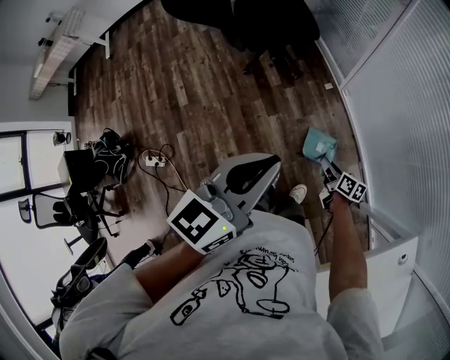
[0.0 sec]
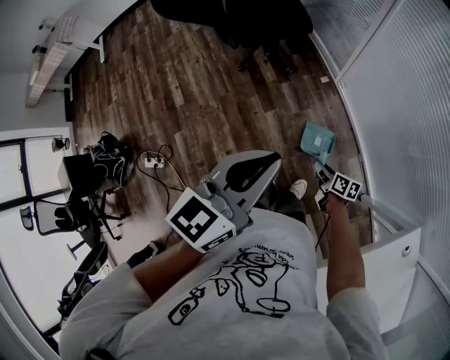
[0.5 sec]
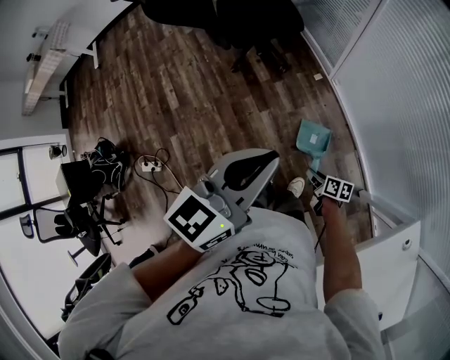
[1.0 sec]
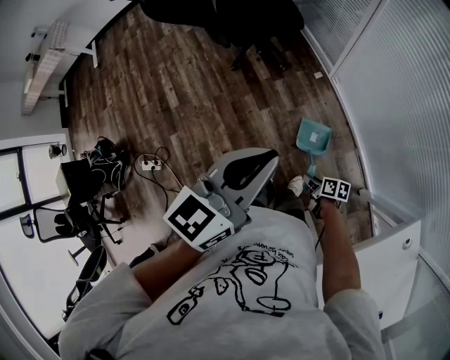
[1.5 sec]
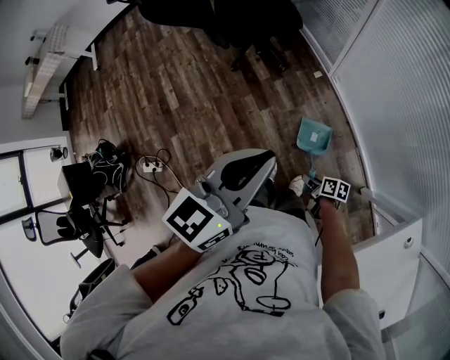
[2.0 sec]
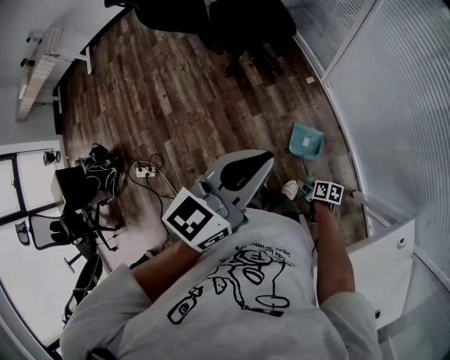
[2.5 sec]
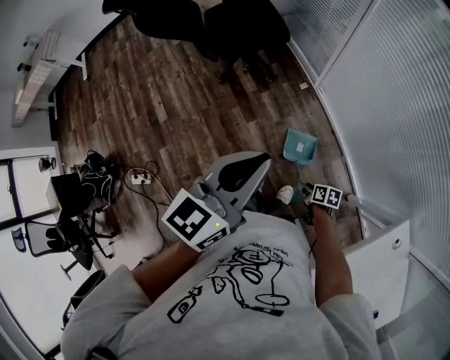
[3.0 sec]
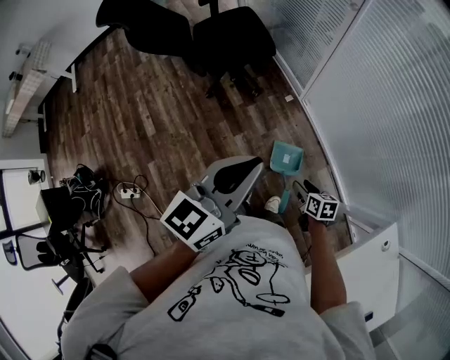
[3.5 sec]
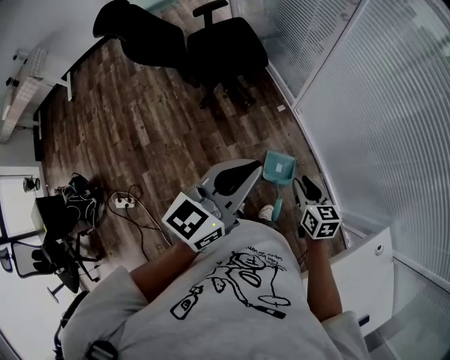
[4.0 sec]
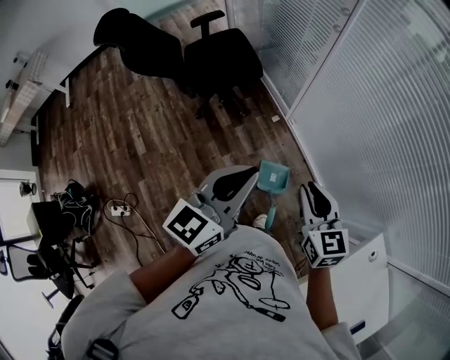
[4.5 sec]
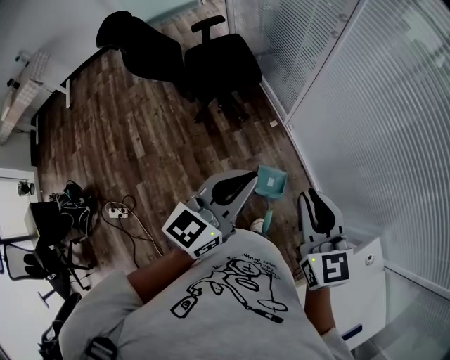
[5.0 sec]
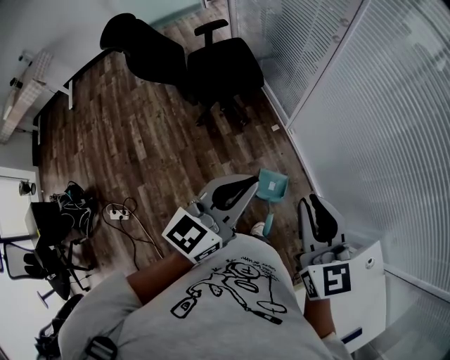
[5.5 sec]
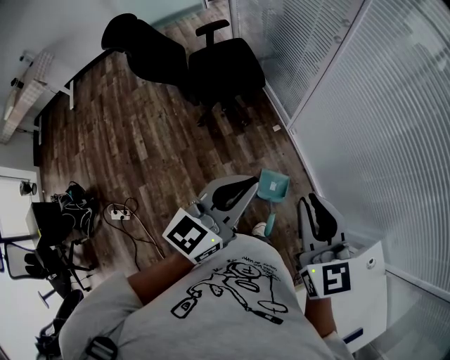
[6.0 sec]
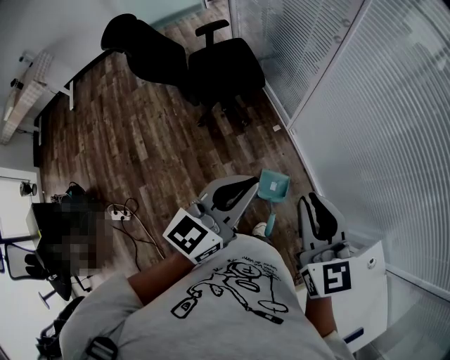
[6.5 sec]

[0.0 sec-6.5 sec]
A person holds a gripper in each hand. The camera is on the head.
0.0 sec to 2.0 sec: The right gripper moves backward and downward, approximately 15 cm, and swivels some 20 degrees.
2.0 sec to 4.5 sec: The right gripper travels upward by approximately 40 cm, rolls counterclockwise, seen from behind, by approximately 60 degrees, and opens, then closes again. The left gripper heads forward, covering some 5 cm.
4.5 sec to 6.5 sec: The right gripper moves upward, some 10 cm.

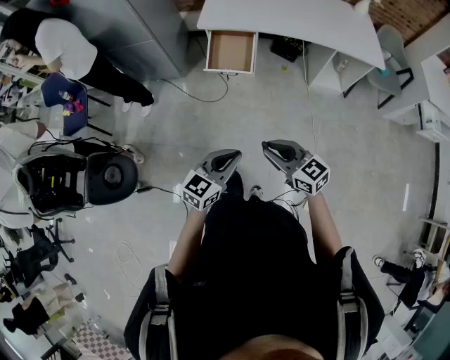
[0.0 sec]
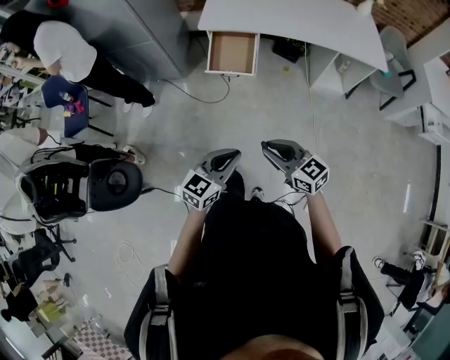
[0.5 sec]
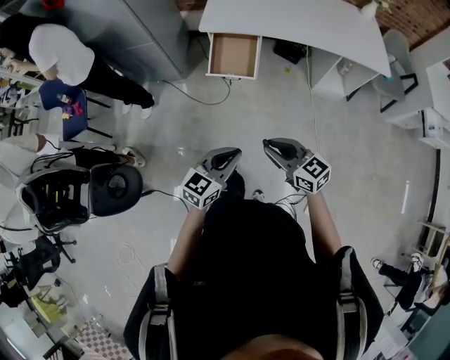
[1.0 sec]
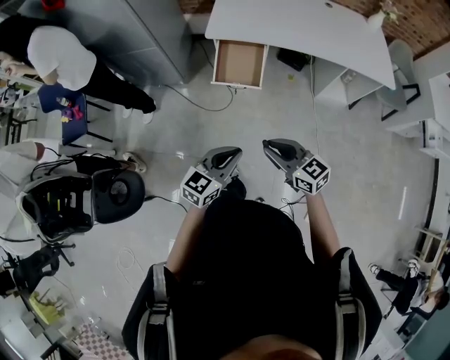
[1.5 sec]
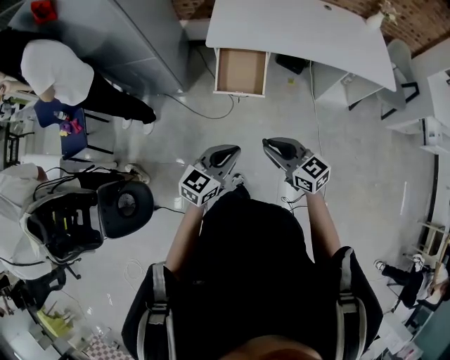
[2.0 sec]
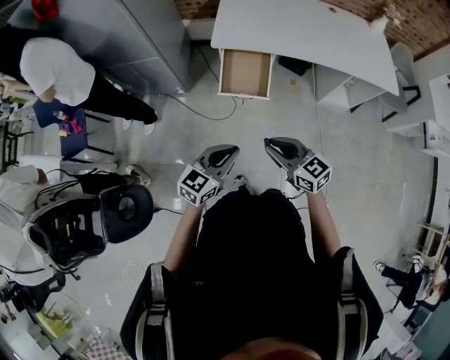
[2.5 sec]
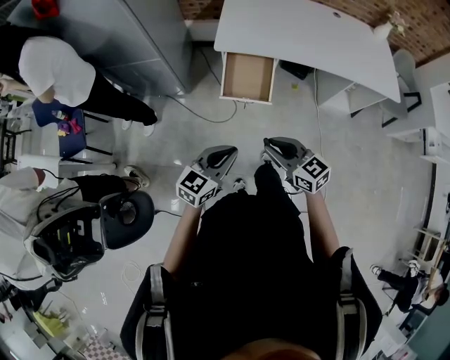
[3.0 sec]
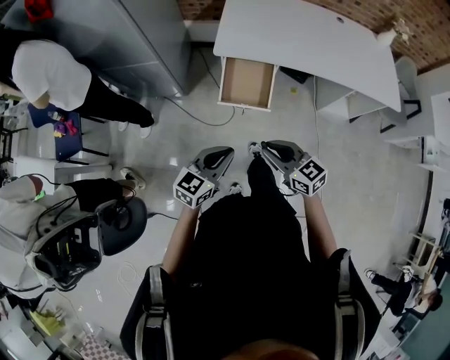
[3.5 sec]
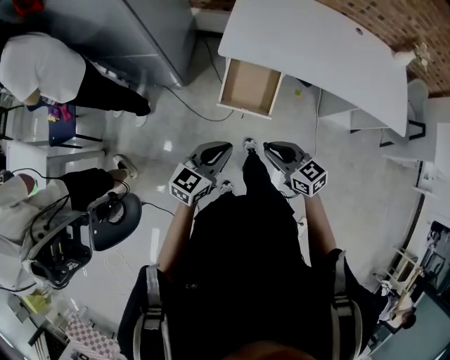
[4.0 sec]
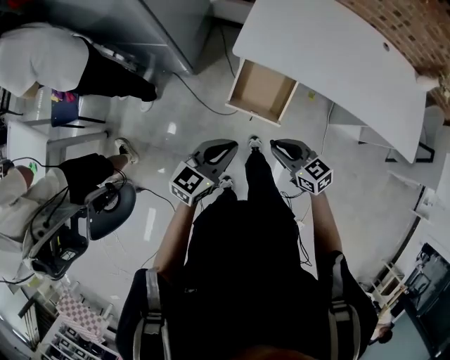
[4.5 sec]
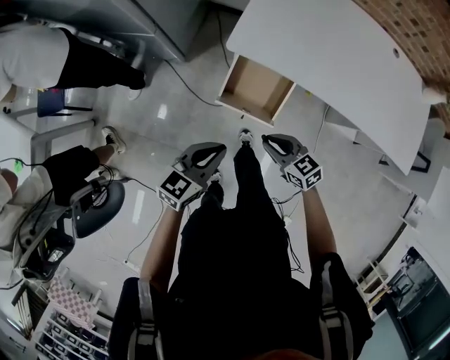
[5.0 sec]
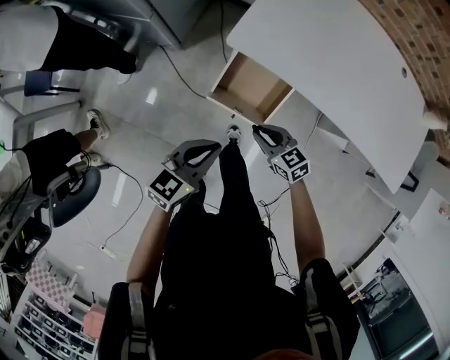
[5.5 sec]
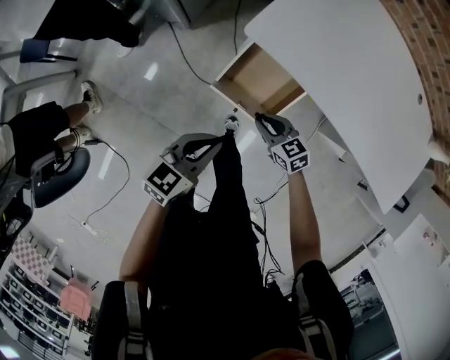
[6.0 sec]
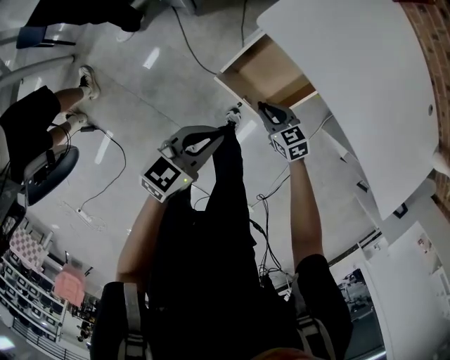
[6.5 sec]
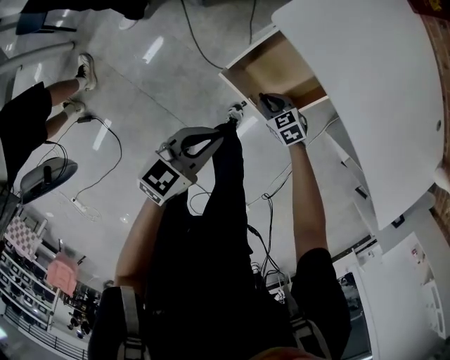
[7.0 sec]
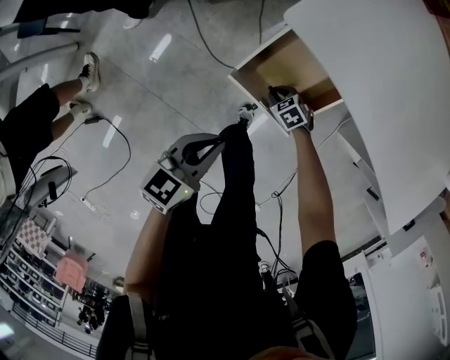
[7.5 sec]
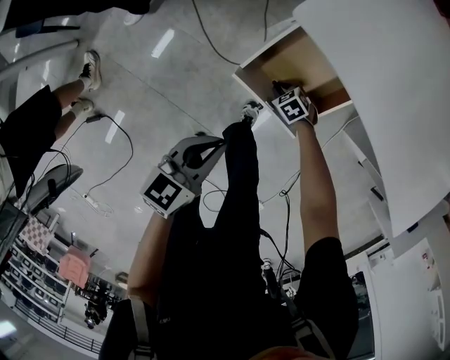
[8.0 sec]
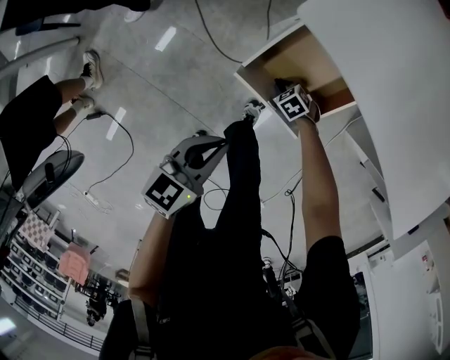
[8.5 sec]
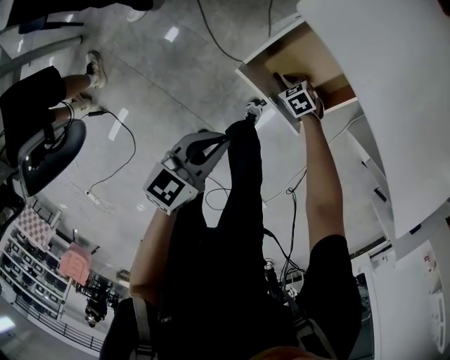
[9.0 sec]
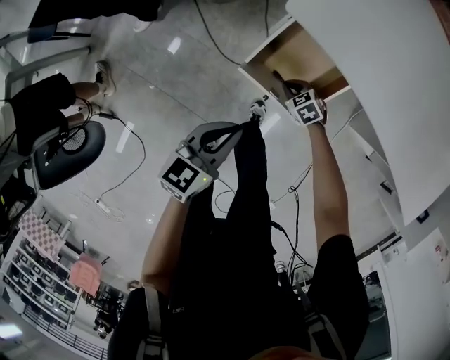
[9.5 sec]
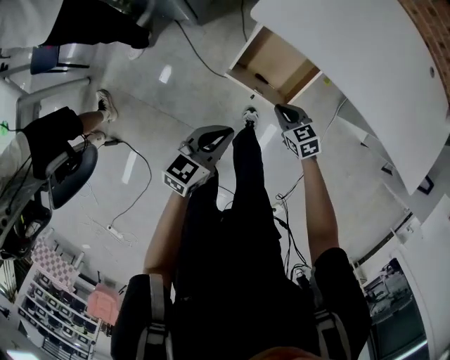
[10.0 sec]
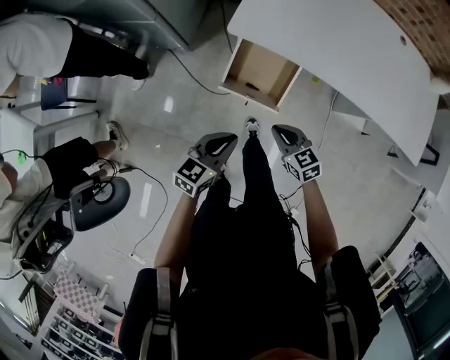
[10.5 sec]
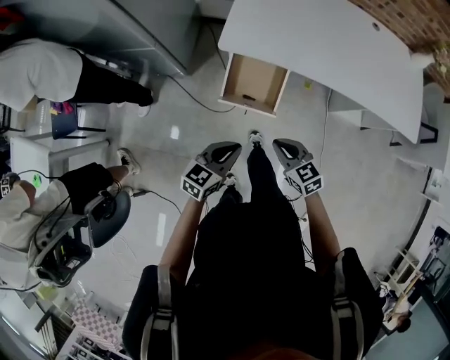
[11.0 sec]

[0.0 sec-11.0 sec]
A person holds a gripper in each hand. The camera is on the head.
0.0 sec to 2.0 sec: Both grippers travel together forward and to the left, about 20 cm.
2.0 sec to 3.5 sec: The left gripper moves forward and to the left, some 10 cm. Meanwhile the right gripper moves forward, approximately 10 cm.
3.5 sec to 5.5 sec: The right gripper goes roughly 30 cm forward and downward, and swivels roughly 30 degrees. The left gripper shifts about 20 cm forward.
5.5 sec to 7.5 sec: The left gripper heads downward, covering approximately 15 cm, while the right gripper is displaced downward by some 30 cm, and turns by approximately 30 degrees.
7.5 sec to 9.0 sec: The grippers move only a little.
9.0 sec to 11.0 sec: The right gripper moves upward, about 40 cm, and tips its fingers upward by approximately 30 degrees; the left gripper shifts some 15 cm upward, and rotates roughly 30 degrees.

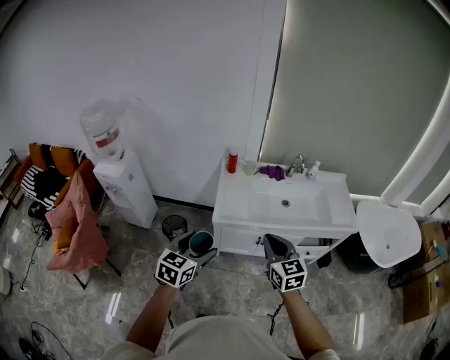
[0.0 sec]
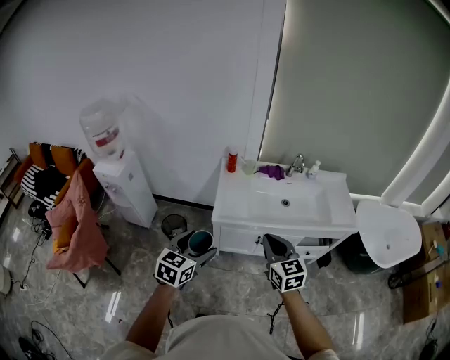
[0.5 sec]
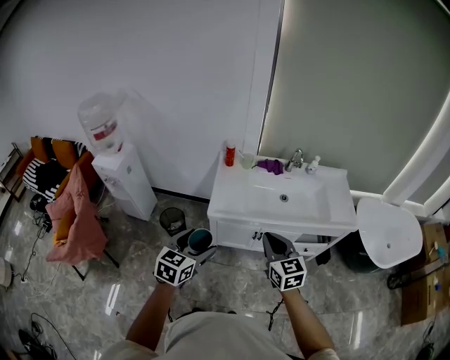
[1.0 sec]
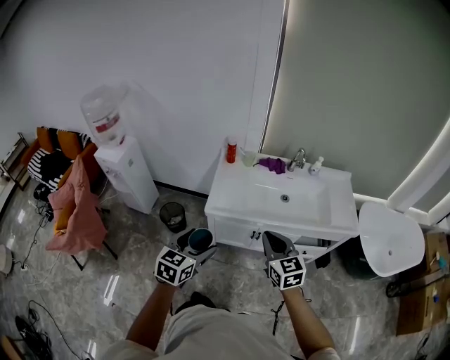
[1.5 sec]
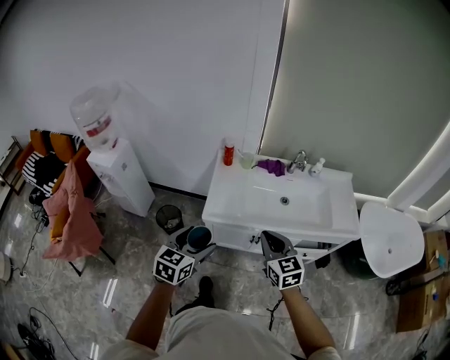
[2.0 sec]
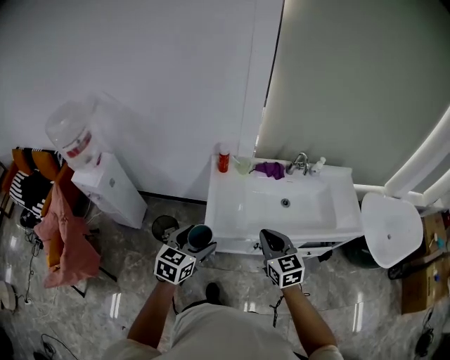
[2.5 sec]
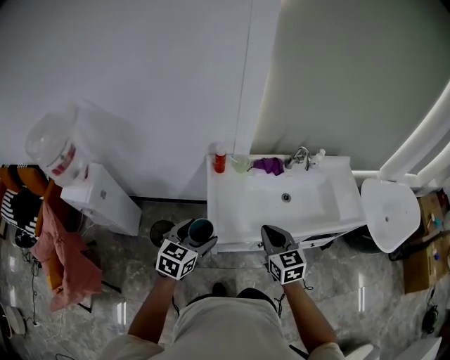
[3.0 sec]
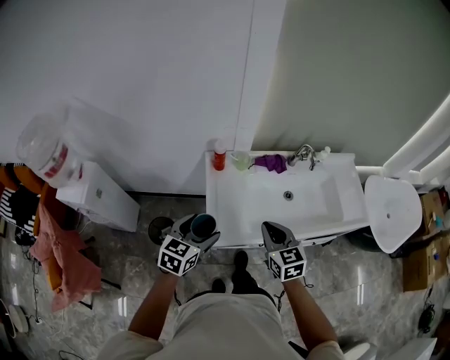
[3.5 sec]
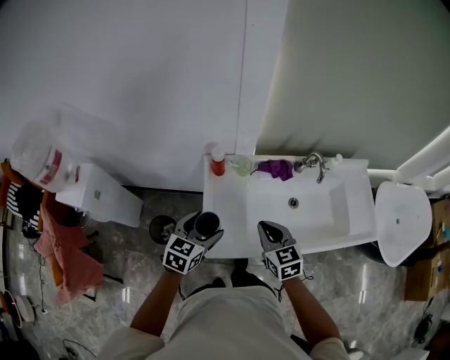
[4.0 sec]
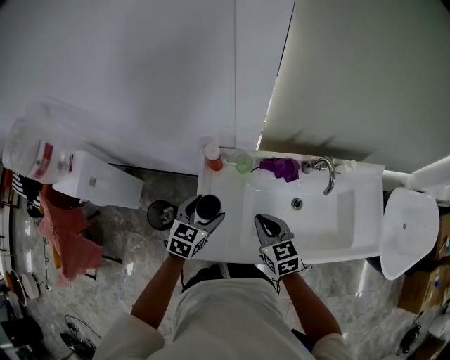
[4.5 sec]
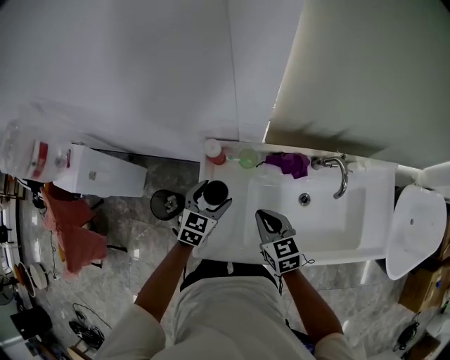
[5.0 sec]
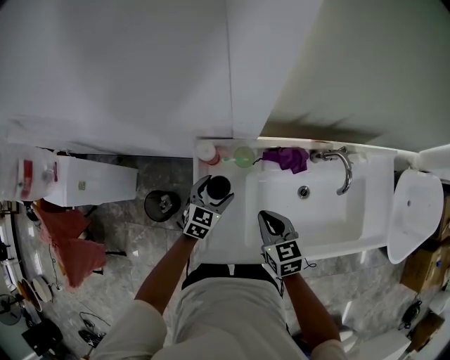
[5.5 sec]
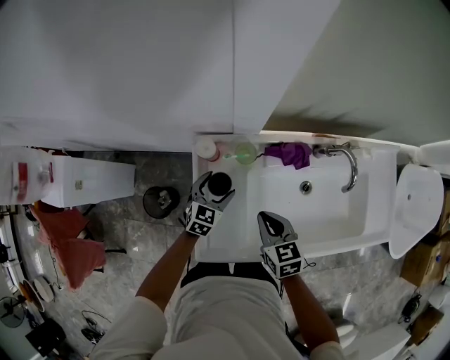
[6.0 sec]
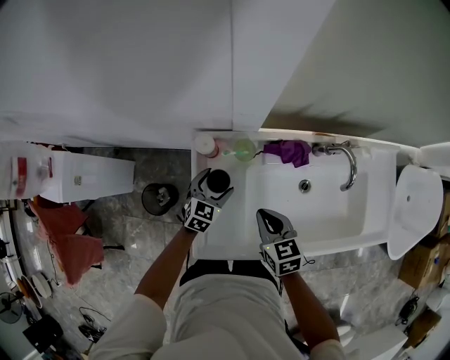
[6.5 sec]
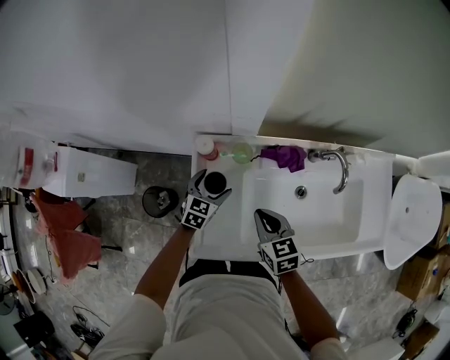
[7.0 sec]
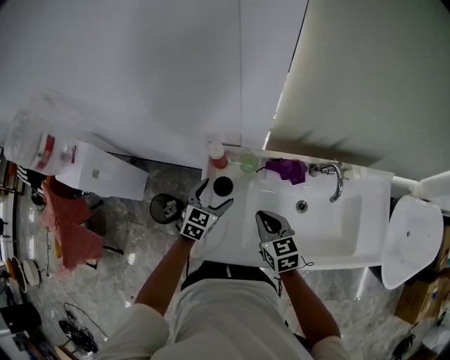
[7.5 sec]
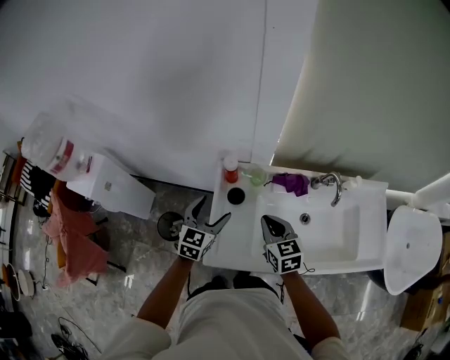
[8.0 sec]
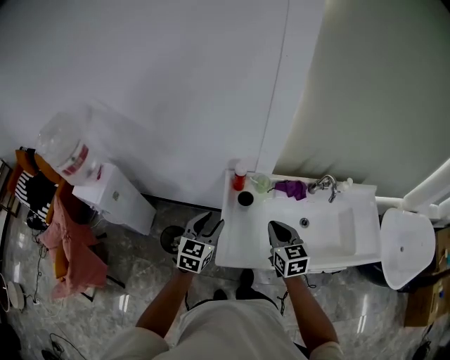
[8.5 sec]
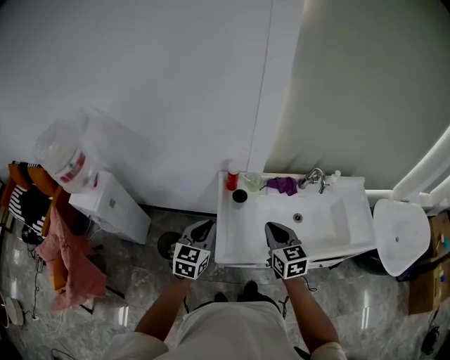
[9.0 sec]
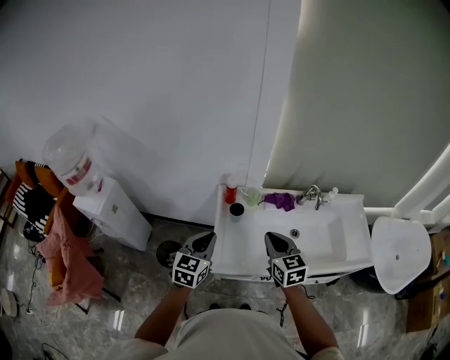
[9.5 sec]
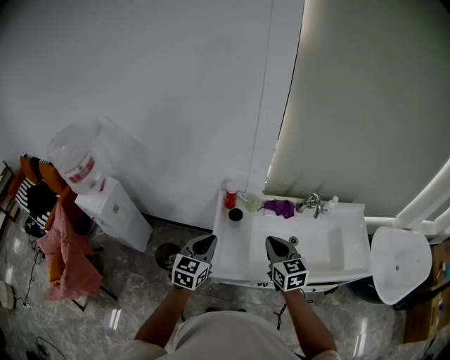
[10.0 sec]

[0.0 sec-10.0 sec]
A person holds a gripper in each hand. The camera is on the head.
0.0 sec to 2.0 sec: The right gripper is displaced forward by approximately 10 cm, while the left gripper shifts about 10 cm forward and to the right.
2.0 sec to 4.0 sec: The grippers both shift forward by about 30 cm.
4.0 sec to 6.0 sec: The right gripper moves downward and forward, about 15 cm. The left gripper moves downward and forward, about 30 cm.
6.0 sec to 8.0 sec: The left gripper travels upward and backward by about 20 cm. Meanwhile the right gripper is displaced upward by some 10 cm.
8.0 sec to 10.0 sec: The grippers both shift backward and upward by about 15 cm. The left gripper closes.
